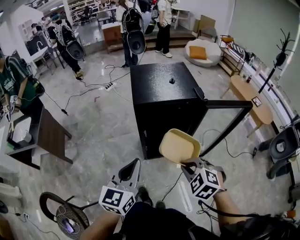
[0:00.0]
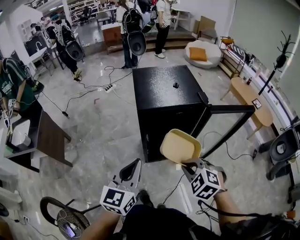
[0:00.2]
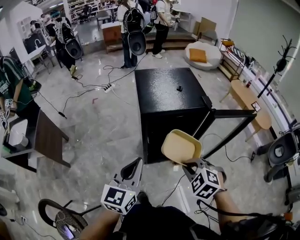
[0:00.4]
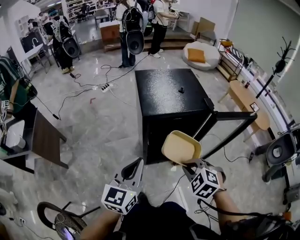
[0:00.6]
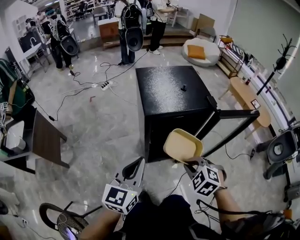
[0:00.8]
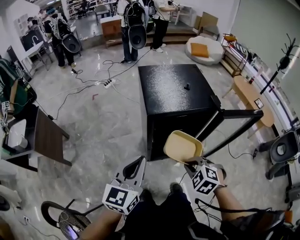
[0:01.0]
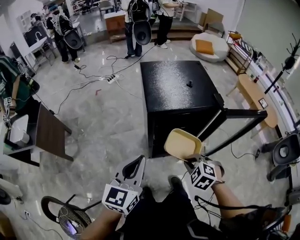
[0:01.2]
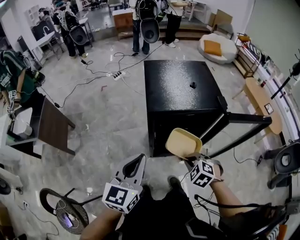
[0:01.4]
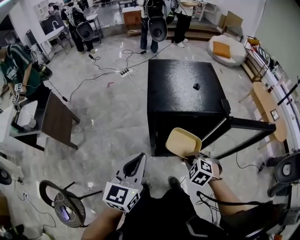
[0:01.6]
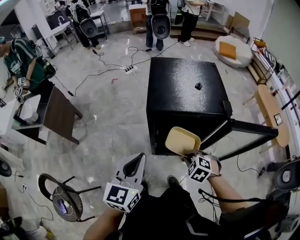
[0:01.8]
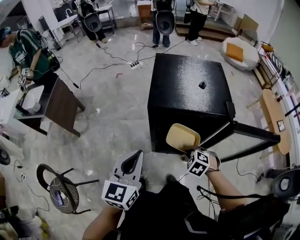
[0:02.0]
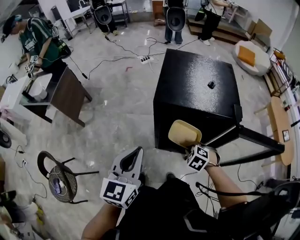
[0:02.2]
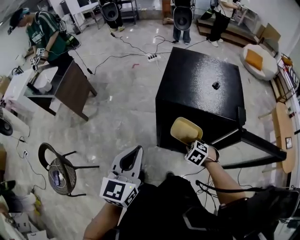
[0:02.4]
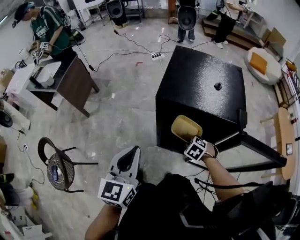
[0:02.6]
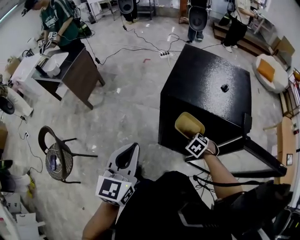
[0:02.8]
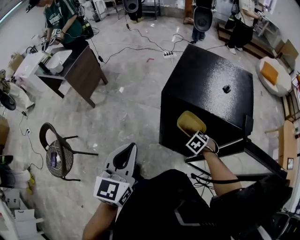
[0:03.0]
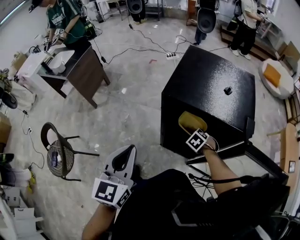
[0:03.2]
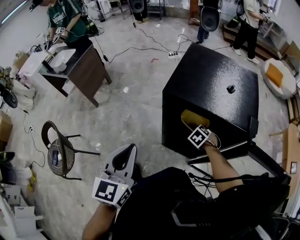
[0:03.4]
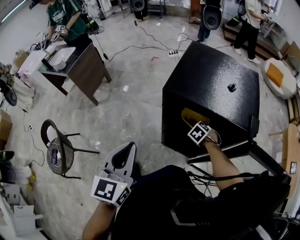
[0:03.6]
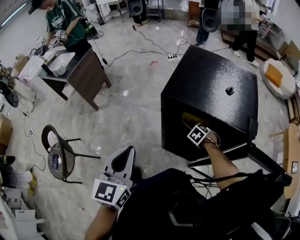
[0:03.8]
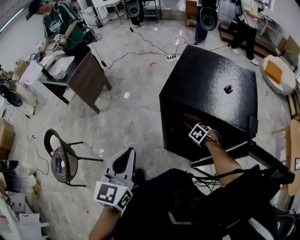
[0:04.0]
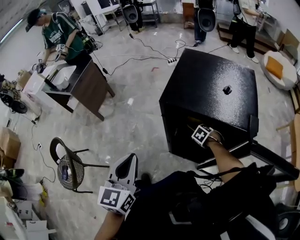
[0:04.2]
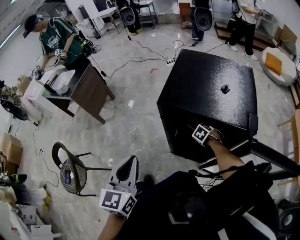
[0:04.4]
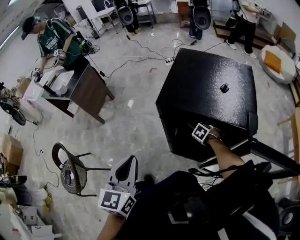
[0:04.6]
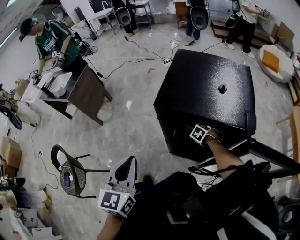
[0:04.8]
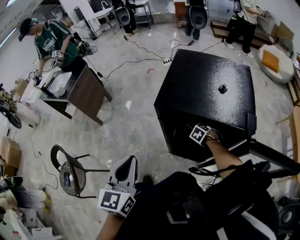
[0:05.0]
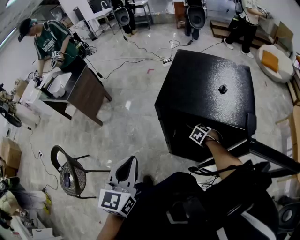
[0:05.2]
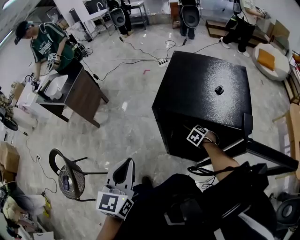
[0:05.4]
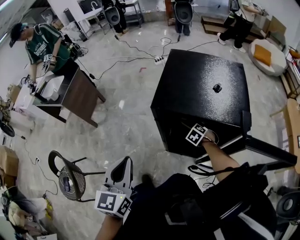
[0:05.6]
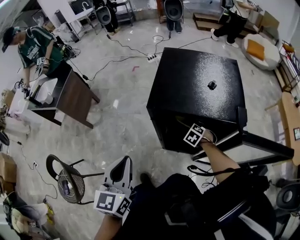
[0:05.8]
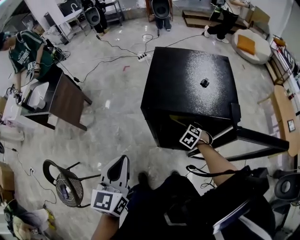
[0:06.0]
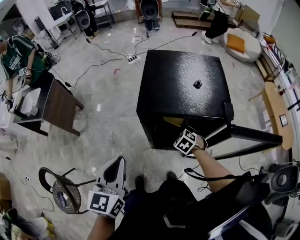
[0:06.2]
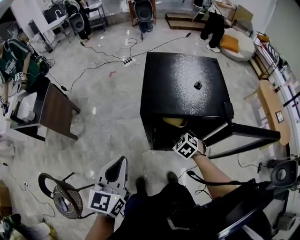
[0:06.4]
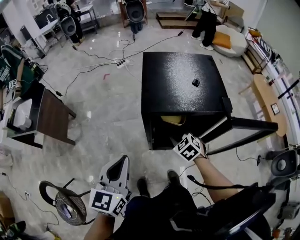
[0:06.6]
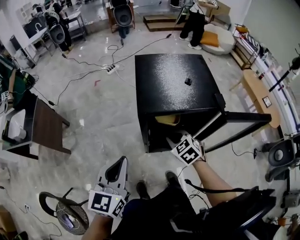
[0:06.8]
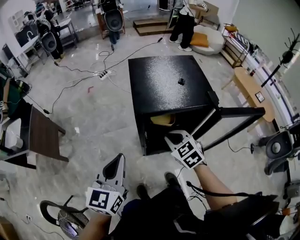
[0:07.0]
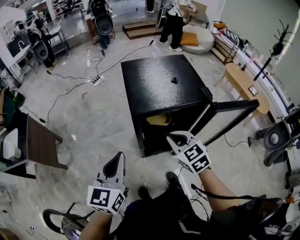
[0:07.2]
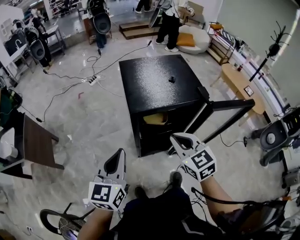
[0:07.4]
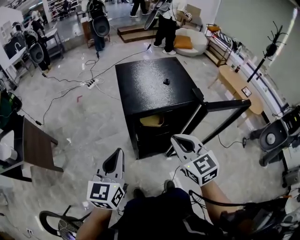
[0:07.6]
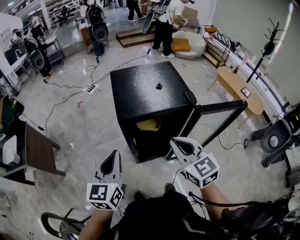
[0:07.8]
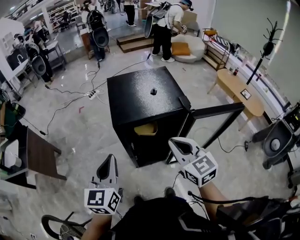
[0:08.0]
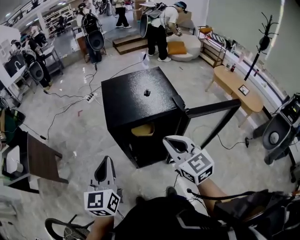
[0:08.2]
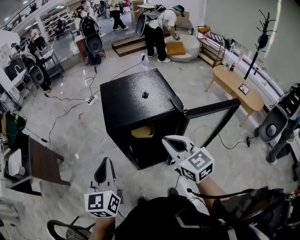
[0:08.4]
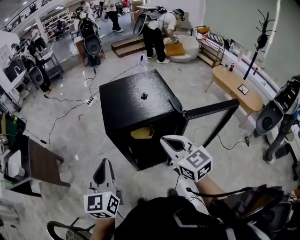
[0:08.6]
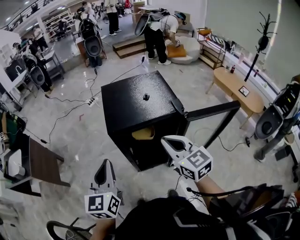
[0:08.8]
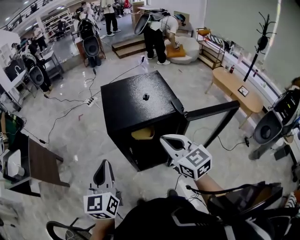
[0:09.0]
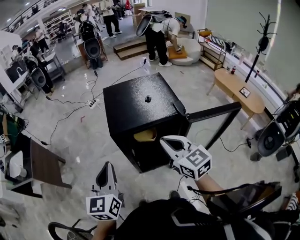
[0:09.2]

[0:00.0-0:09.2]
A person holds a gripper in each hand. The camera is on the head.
0:00.0 to 0:01.6: The left gripper travels forward by some 10 cm, while the right gripper shifts roughly 20 cm forward and downward.
0:01.6 to 0:03.0: The right gripper moves roughly 20 cm; the left gripper swivels approximately 30 degrees.
0:03.0 to 0:04.6: The right gripper shifts by some 10 cm.
0:04.6 to 0:06.2: The right gripper moves upward, some 10 cm, and opens.
0:06.2 to 0:07.6: The left gripper turns by approximately 20 degrees. Meanwhile the right gripper shifts about 30 cm upward and backward, tilts its fingers some 40 degrees upward, and closes up.
0:07.6 to 0:09.2: The right gripper changes place by about 5 cm, while the left gripper moves roughly 5 cm.

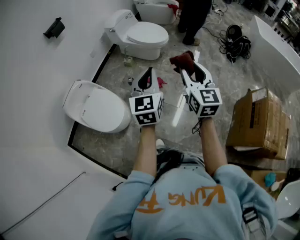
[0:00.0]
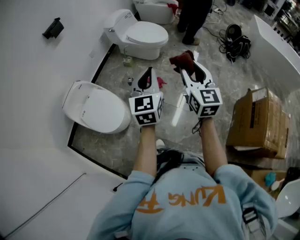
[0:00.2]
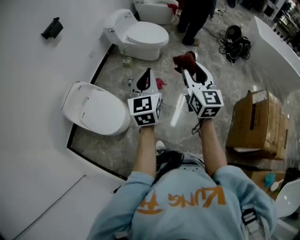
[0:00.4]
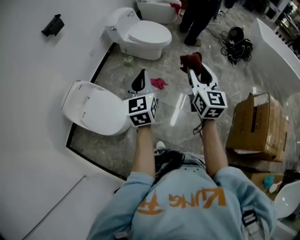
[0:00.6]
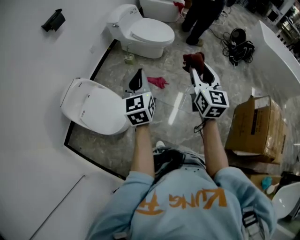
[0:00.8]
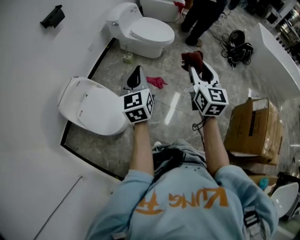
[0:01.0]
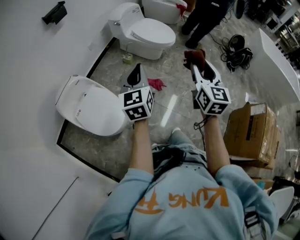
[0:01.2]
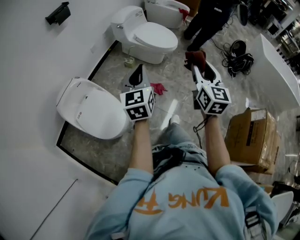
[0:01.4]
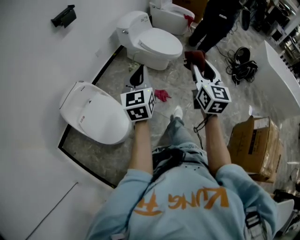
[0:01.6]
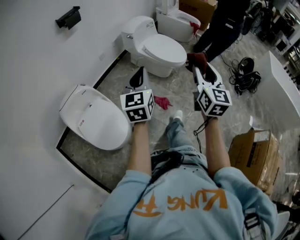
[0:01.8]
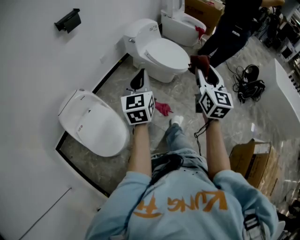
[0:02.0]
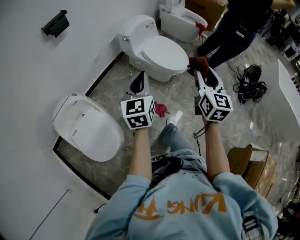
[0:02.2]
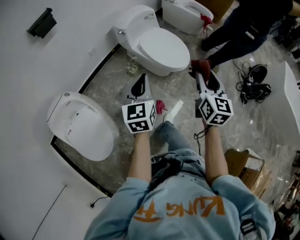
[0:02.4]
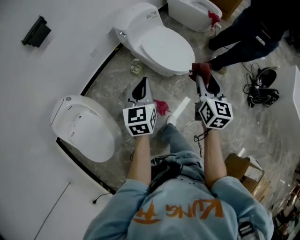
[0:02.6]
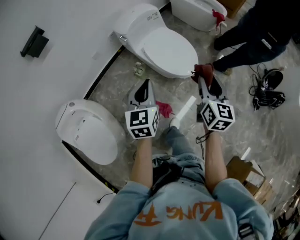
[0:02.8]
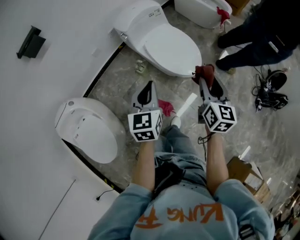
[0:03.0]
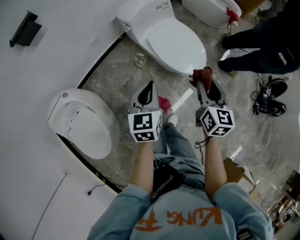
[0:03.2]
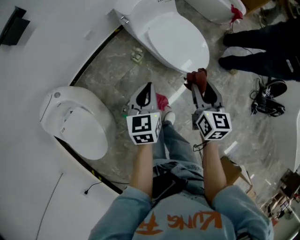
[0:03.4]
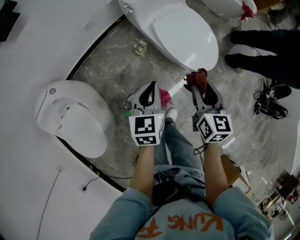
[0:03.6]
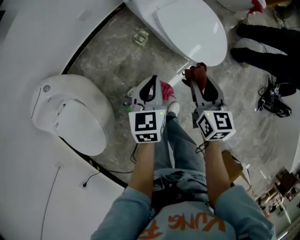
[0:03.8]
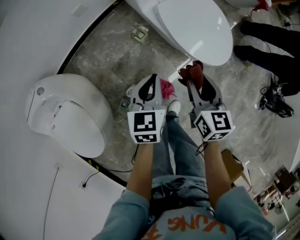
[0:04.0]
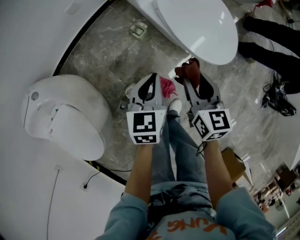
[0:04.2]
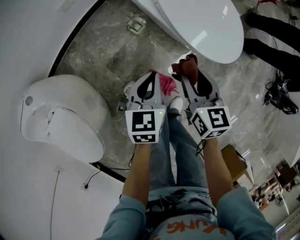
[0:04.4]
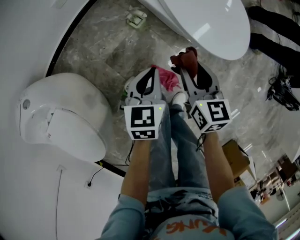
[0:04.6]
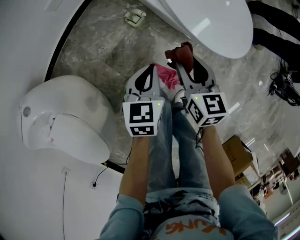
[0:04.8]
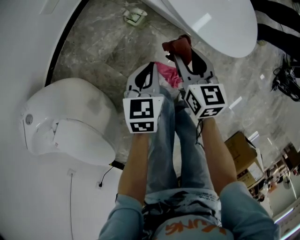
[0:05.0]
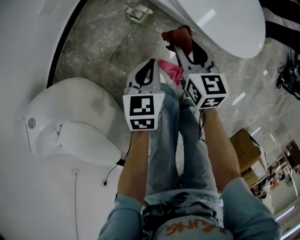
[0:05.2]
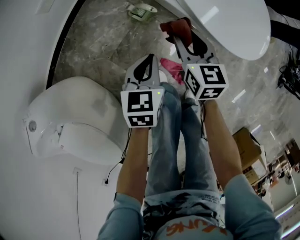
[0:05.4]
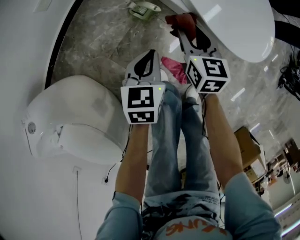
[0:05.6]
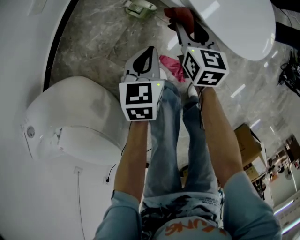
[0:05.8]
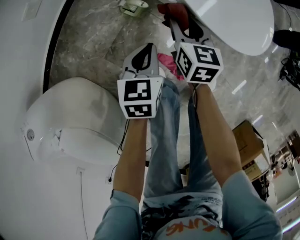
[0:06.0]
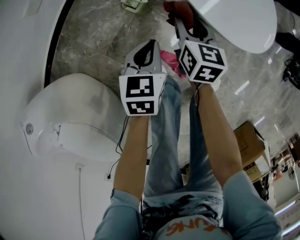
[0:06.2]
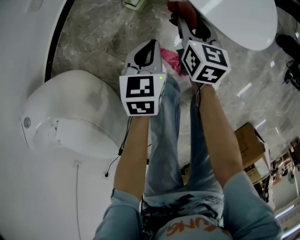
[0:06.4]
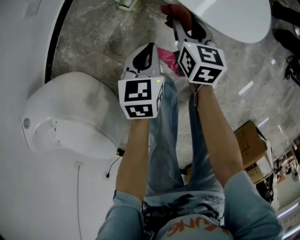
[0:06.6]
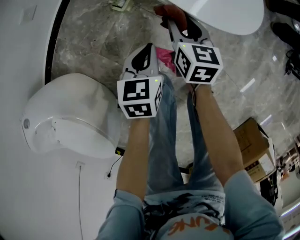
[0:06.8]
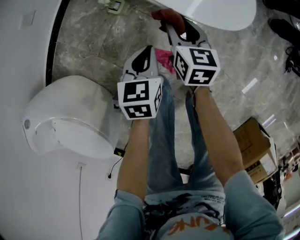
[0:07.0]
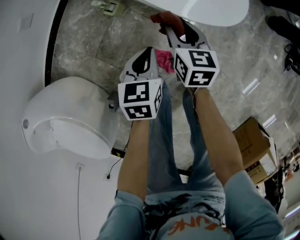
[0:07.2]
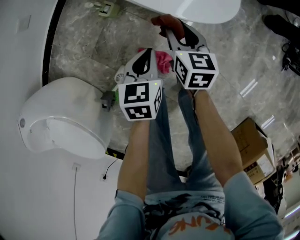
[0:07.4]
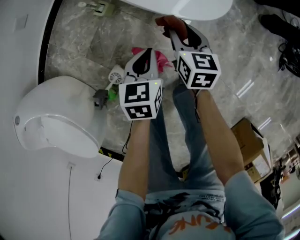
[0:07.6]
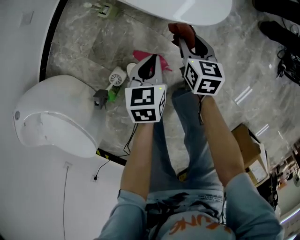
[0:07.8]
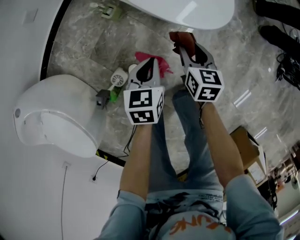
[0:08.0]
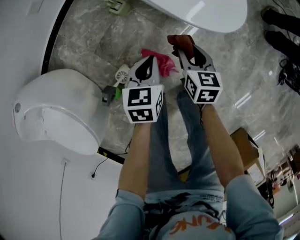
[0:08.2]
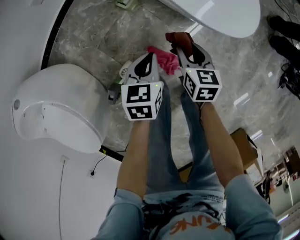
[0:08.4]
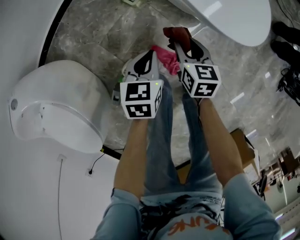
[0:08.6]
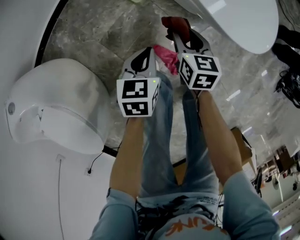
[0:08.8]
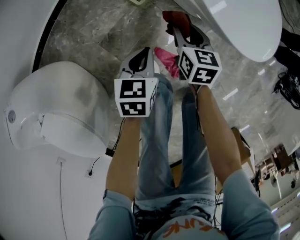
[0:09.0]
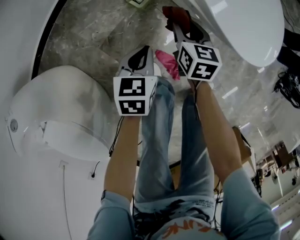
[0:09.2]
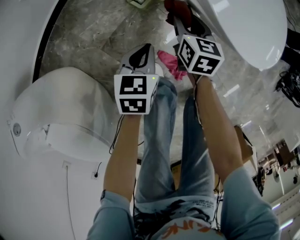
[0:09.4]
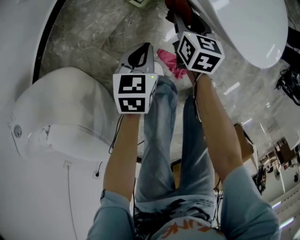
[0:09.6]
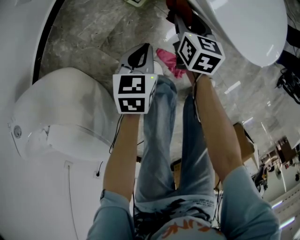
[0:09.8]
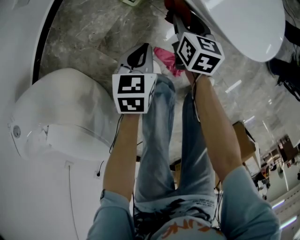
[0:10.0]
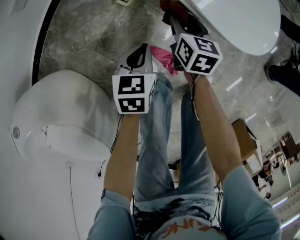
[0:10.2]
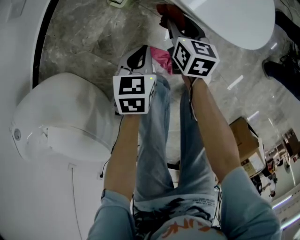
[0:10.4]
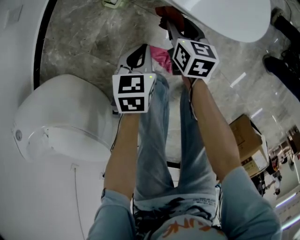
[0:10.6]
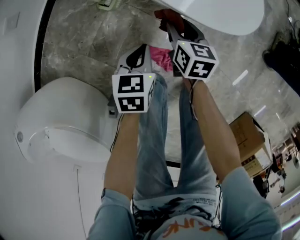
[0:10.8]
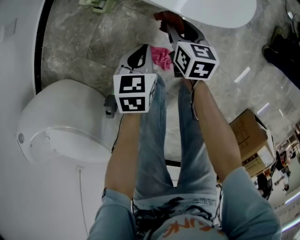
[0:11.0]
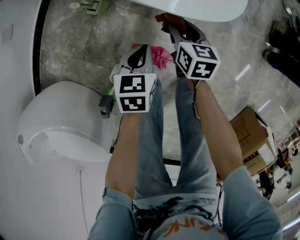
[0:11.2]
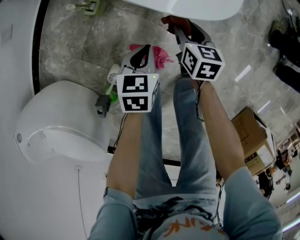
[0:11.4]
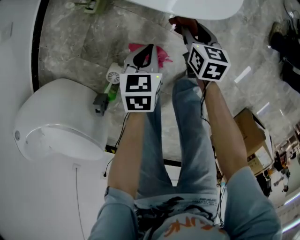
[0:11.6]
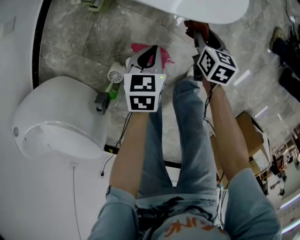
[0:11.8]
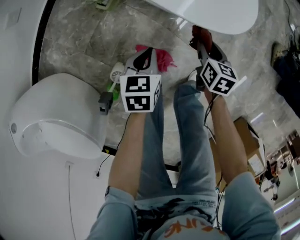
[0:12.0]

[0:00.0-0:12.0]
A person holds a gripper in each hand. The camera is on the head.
0:00.0 to 0:01.6: The right gripper moves forward and to the left, roughly 20 cm; the left gripper travels to the left and forward by some 20 cm.
0:01.6 to 0:03.0: The pair of grippers is taken forward, roughly 50 cm. The right gripper changes its angle by approximately 20 degrees.
0:03.0 to 0:04.4: The left gripper heads downward, covering about 35 cm. The right gripper moves downward and to the left, some 35 cm, and turns by about 20 degrees.
0:04.4 to 0:06.0: Both grippers travel together downward and forward, roughly 20 cm.
0:06.0 to 0:07.6: The right gripper heads to the right and backward, covering about 20 cm. Meanwhile the left gripper is displaced to the right by some 20 cm.
0:07.6 to 0:09.0: Both grippers move to the left, some 20 cm.
0:09.0 to 0:10.4: The two grippers go approximately 5 cm to the right.
0:10.4 to 0:12.0: The left gripper heads to the right, covering approximately 10 cm, while the right gripper shifts approximately 20 cm to the right.

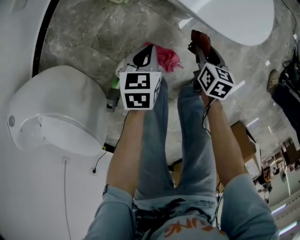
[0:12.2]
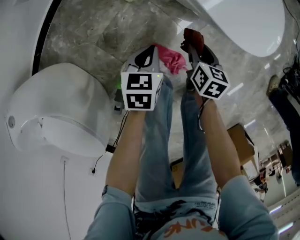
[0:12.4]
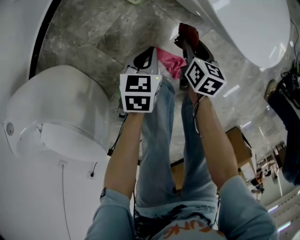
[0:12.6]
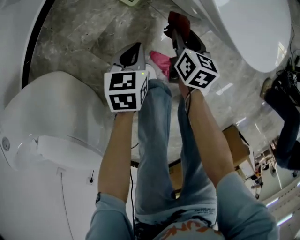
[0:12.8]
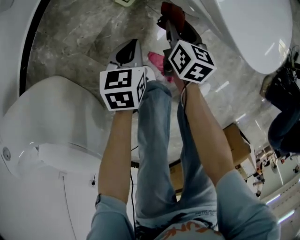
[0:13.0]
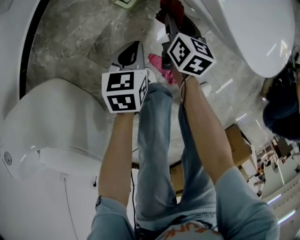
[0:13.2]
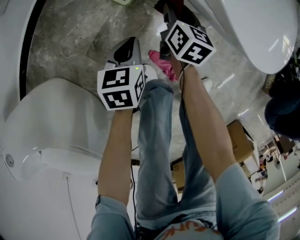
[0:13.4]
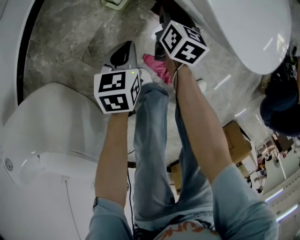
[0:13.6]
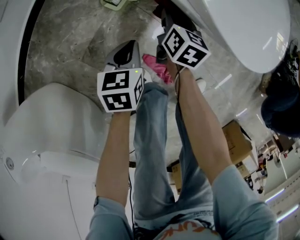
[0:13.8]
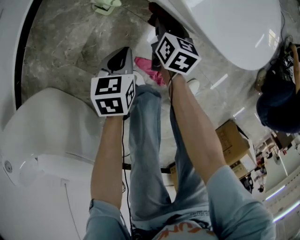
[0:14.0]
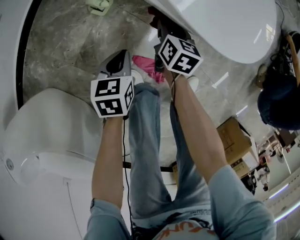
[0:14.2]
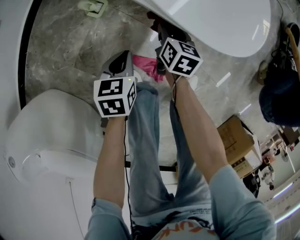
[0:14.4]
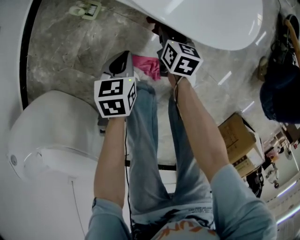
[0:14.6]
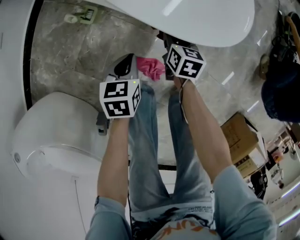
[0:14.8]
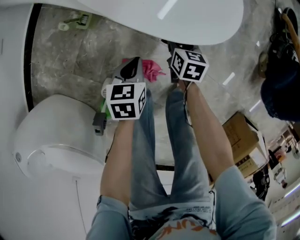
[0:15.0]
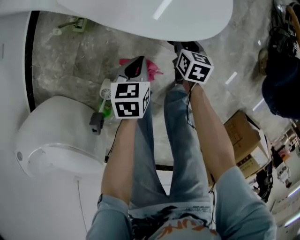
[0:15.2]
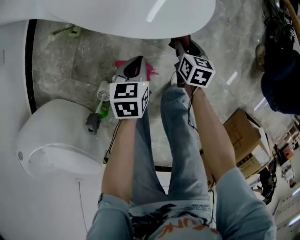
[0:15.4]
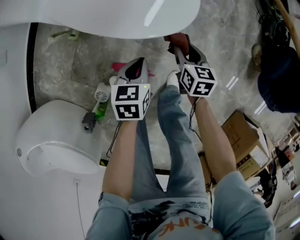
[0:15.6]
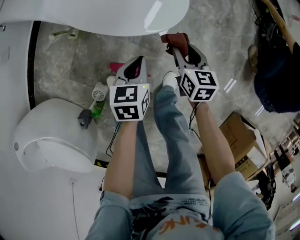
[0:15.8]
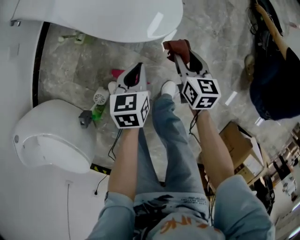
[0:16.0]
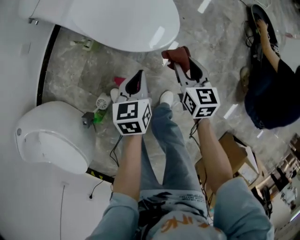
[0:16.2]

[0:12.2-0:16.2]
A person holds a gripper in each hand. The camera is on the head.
0:12.2 to 0:13.6: The right gripper goes about 25 cm to the left, forward and downward. The left gripper moves to the left and downward, approximately 15 cm.
0:13.6 to 0:14.8: Both grippers travel together to the right, roughly 15 cm.
0:14.8 to 0:16.2: The two grippers go roughly 30 cm upward and to the right. The right gripper changes its angle by some 30 degrees.
